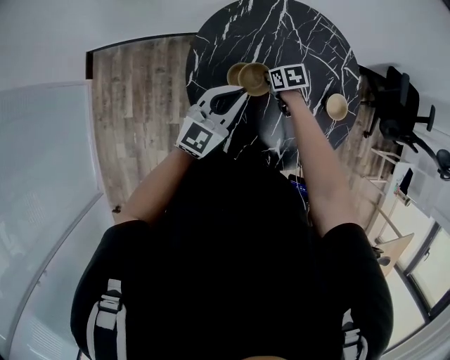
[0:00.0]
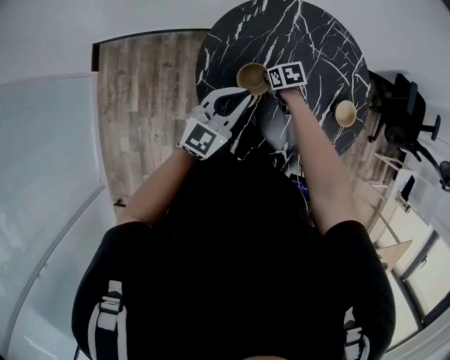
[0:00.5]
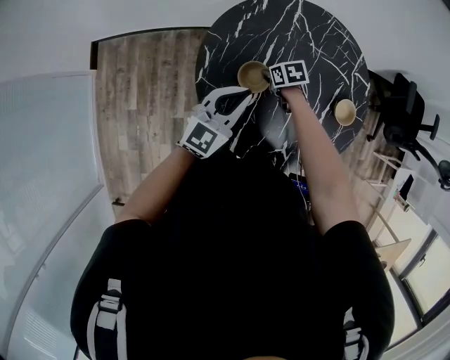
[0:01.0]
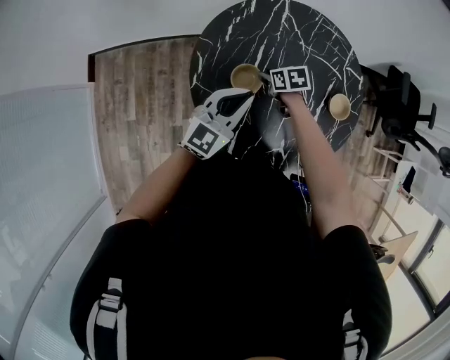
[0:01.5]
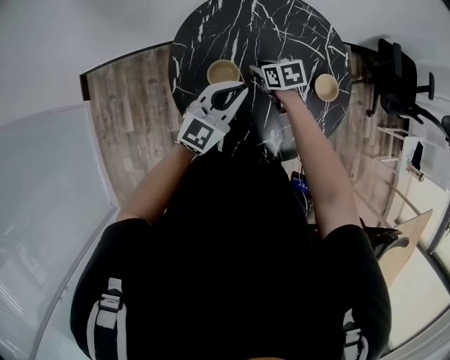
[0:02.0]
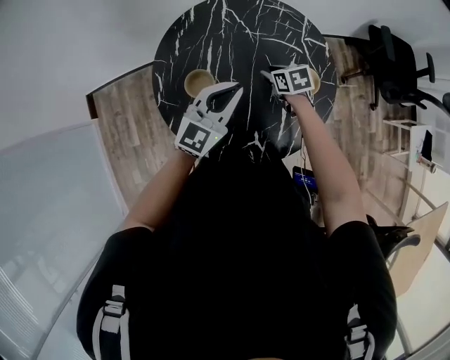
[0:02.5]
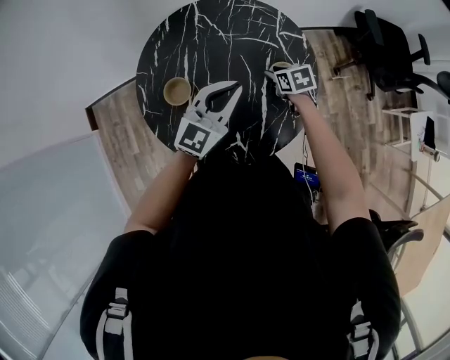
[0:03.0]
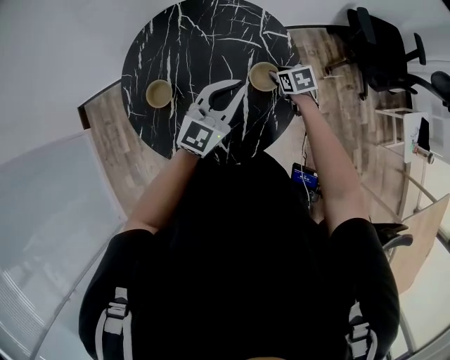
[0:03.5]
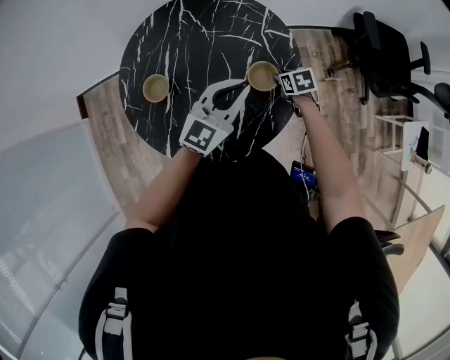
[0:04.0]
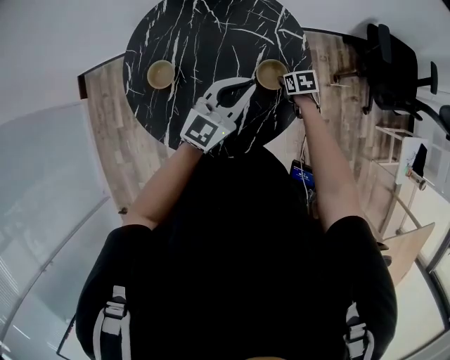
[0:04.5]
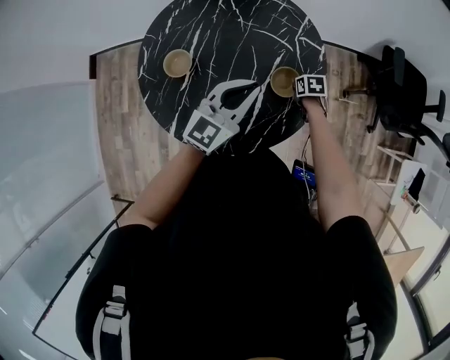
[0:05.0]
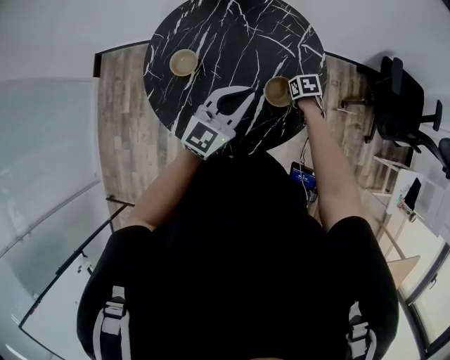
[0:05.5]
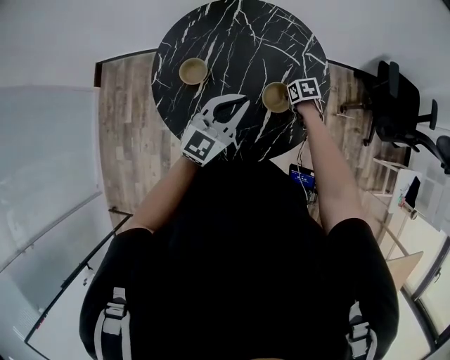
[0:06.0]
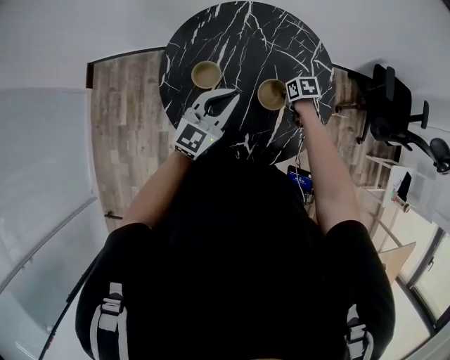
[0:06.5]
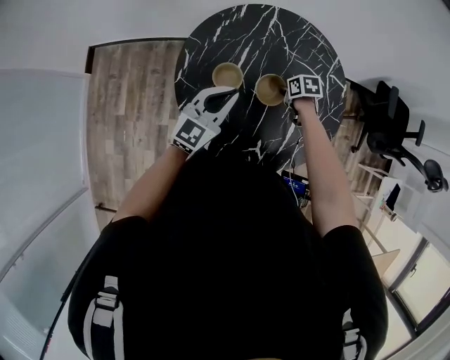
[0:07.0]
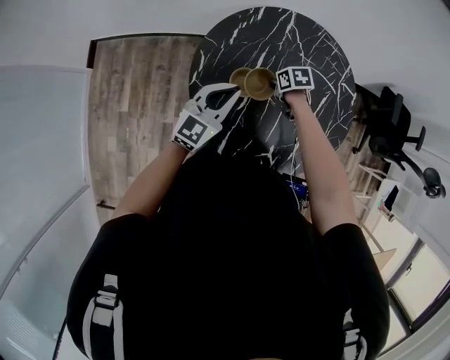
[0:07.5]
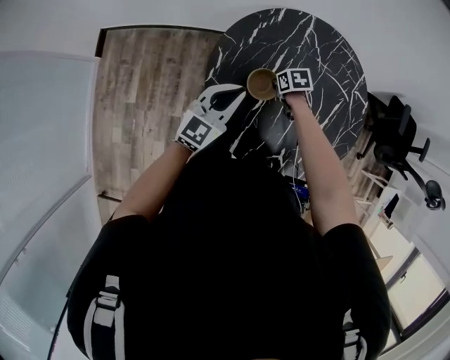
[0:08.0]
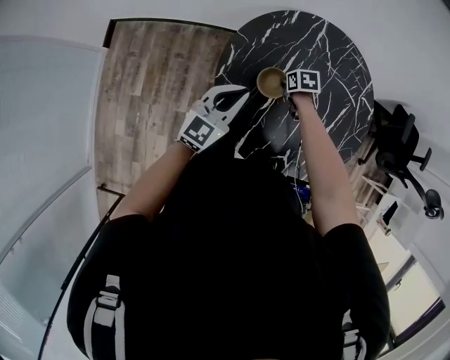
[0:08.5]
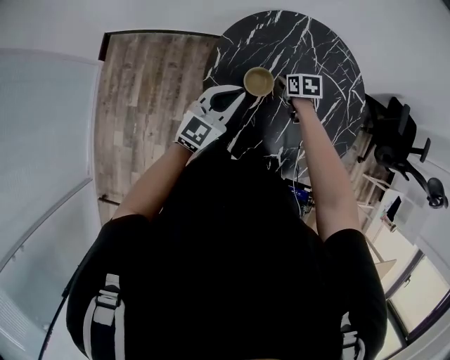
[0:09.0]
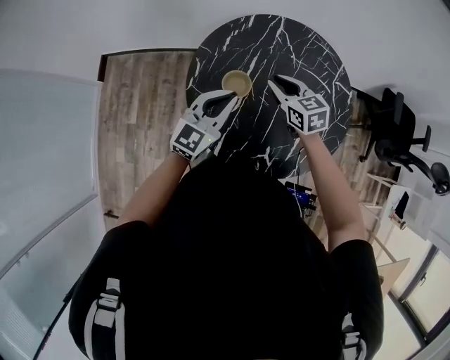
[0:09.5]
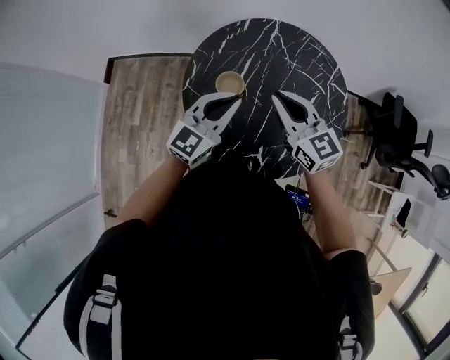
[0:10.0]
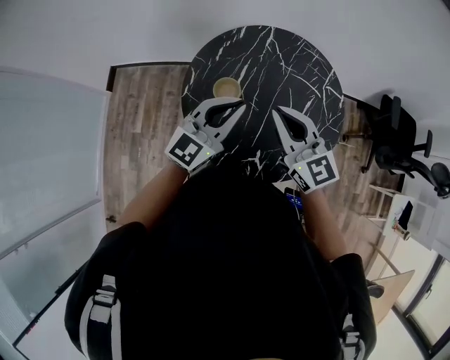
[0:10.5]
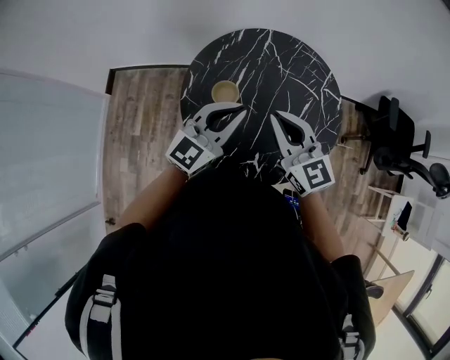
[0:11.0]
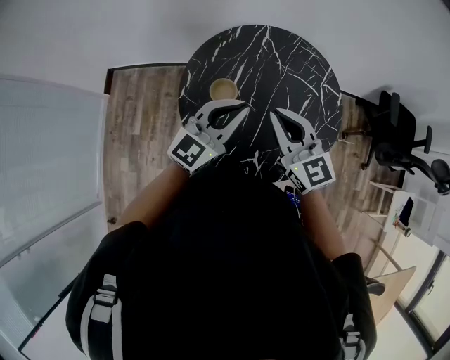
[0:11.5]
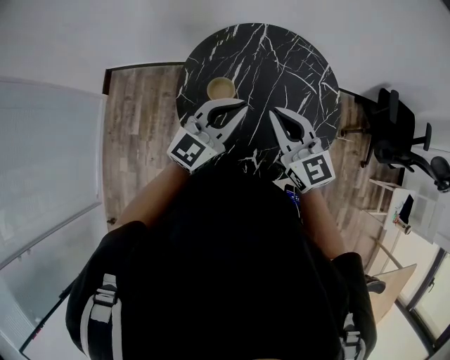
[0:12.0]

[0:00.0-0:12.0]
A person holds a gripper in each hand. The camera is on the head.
0:00.0 to 0:02.0: The right gripper travels upward by some 5 cm, and opens its fingers, while the left gripper is displaced to the right by approximately 5 cm.
0:02.0 to 0:04.0: Both grippers travel together to the right, approximately 35 cm.
0:04.0 to 0:06.0: The two grippers go approximately 10 cm to the left. The right gripper closes up.
0:06.0 to 0:08.0: Both grippers travel together to the left and forward, some 35 cm.
0:08.0 to 0:10.0: The right gripper moves upward, roughly 35 cm, and tilts its fingers about 60 degrees upward, while the left gripper moves to the right, upward and backward, about 20 cm.
0:10.0 to 0:12.0: The left gripper is displaced to the right by some 5 cm; the right gripper changes place by about 5 cm.

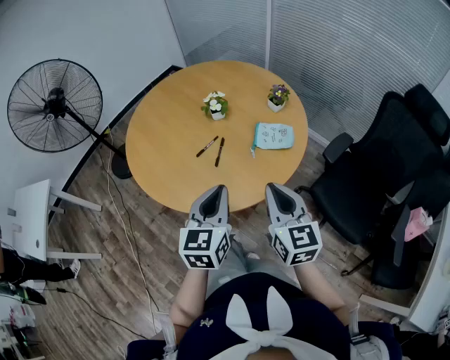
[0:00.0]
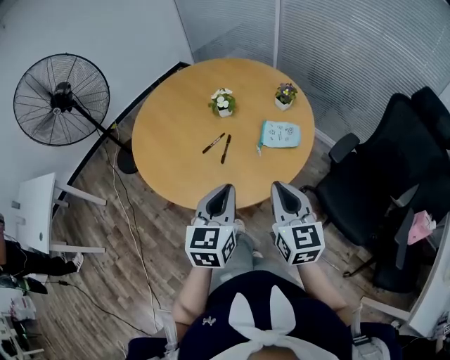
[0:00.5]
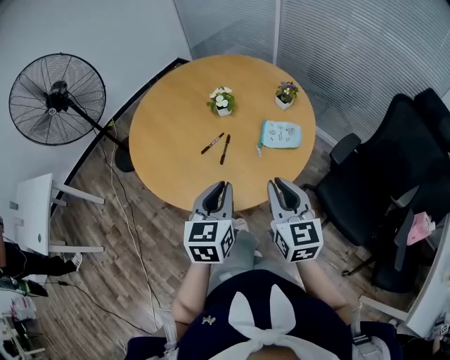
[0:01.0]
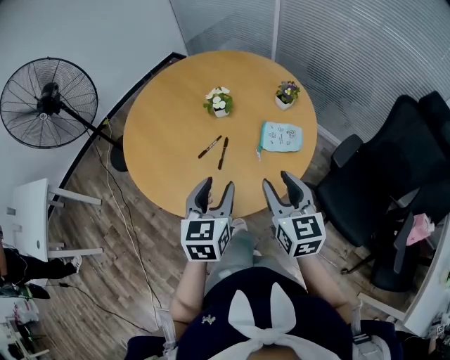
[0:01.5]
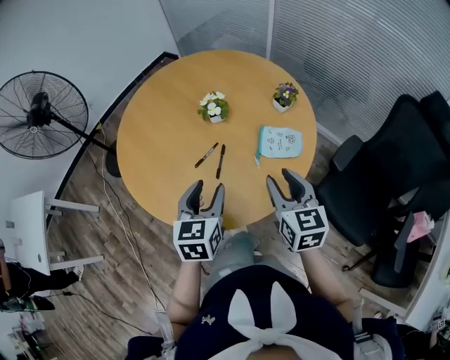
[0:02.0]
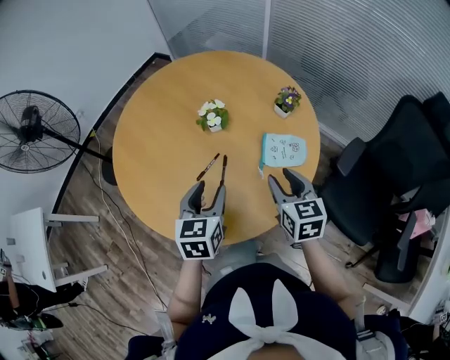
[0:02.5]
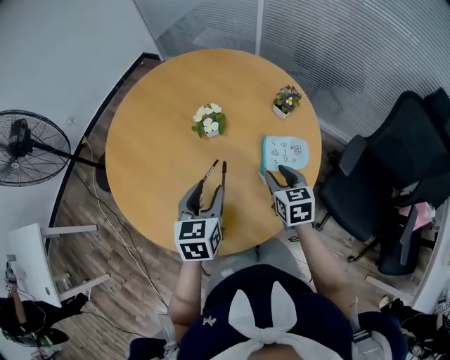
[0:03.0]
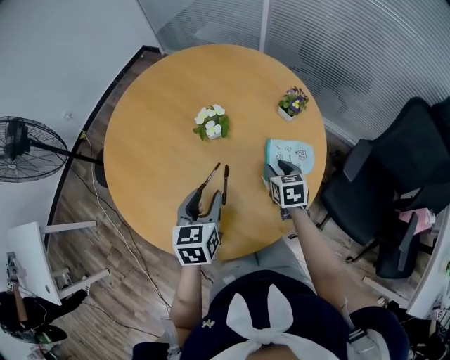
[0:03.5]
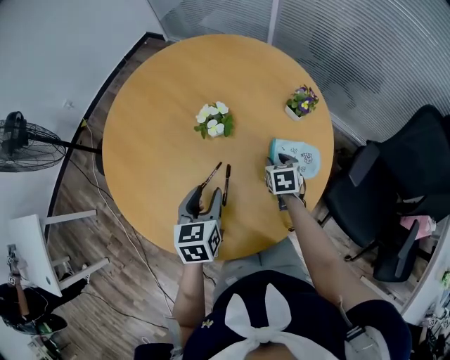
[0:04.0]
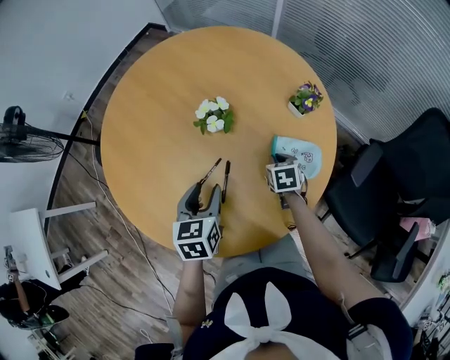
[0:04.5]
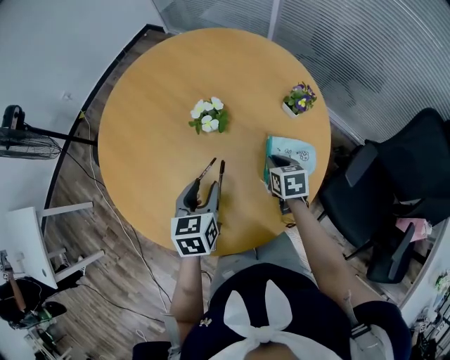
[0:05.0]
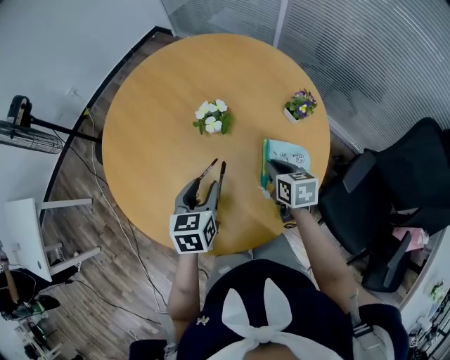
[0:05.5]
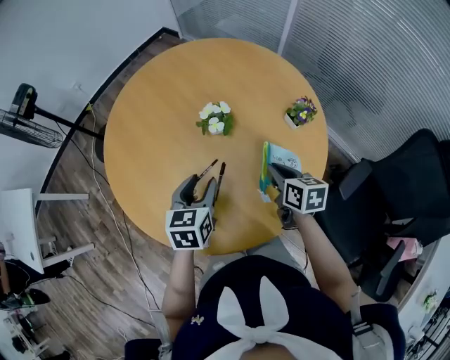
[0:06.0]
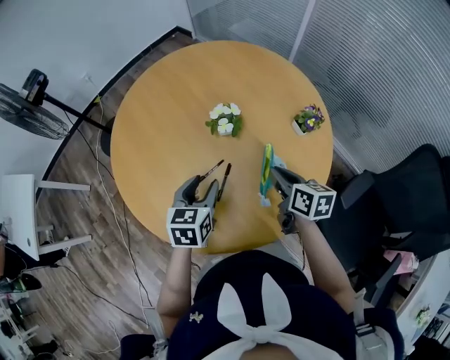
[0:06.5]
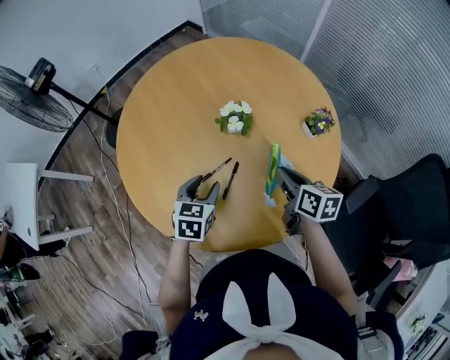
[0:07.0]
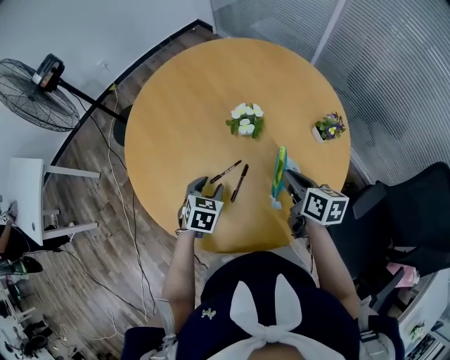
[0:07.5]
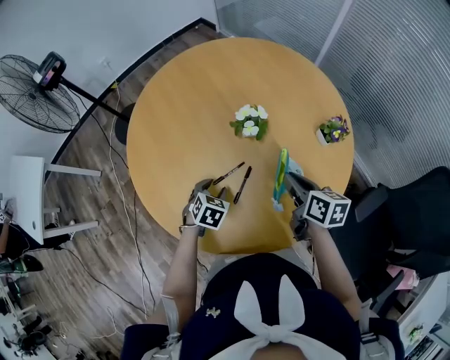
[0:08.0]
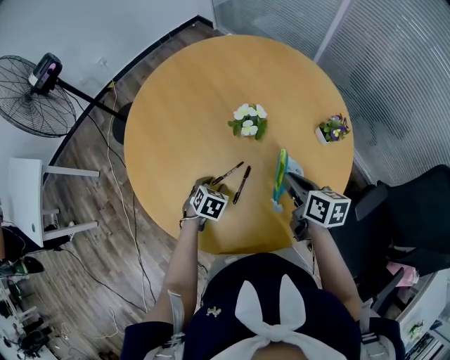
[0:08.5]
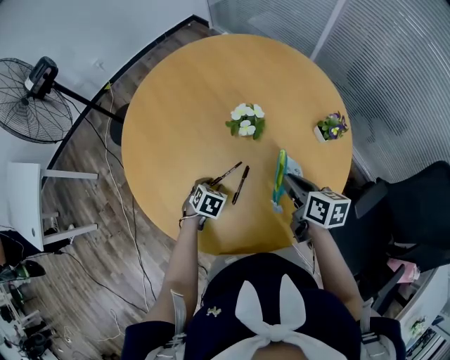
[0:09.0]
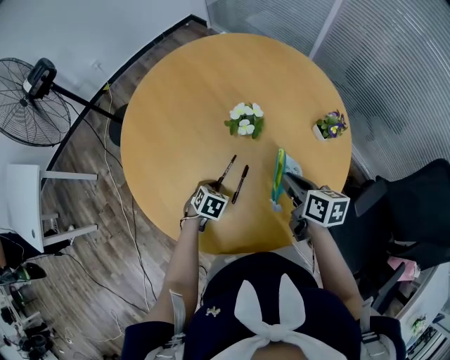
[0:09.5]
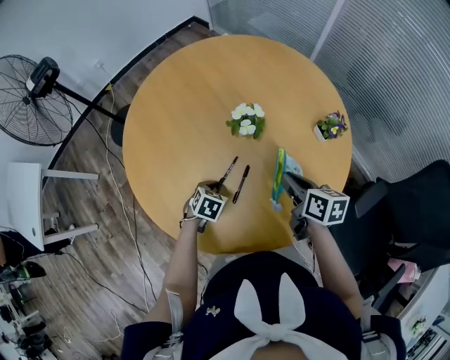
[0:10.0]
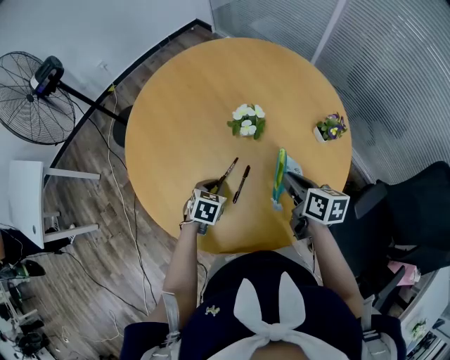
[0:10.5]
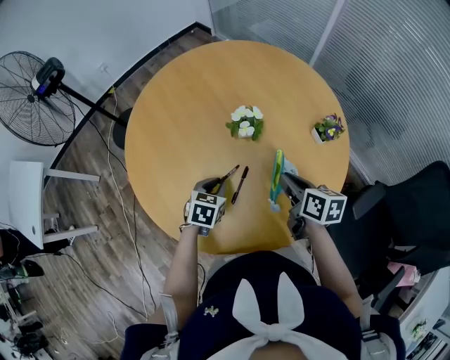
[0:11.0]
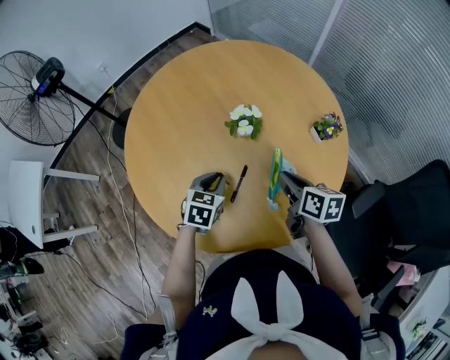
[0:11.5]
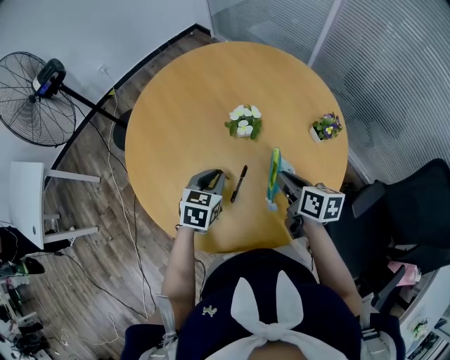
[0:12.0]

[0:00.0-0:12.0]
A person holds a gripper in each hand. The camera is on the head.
0:00.0 to 0:02.0: The left gripper moves forward and downward, approximately 15 cm, and opens up. The right gripper shifts some 15 cm forward, and opens.
0:02.0 to 0:04.0: The right gripper heads downward and forward, covering some 30 cm, and tilts its fingers about 40 degrees downward. The left gripper travels forward and downward by approximately 15 cm.
0:04.0 to 0:06.0: The right gripper moves upward, roughly 10 cm, turns by approximately 30 degrees, and closes its fingers.
0:06.0 to 0:08.0: The left gripper shifts some 15 cm downward, and turns by approximately 30 degrees.
0:08.0 to 0:10.0: The left gripper closes its fingers.
0:10.0 to 0:12.0: The left gripper moves upward, approximately 15 cm, and turns by approximately 20 degrees.

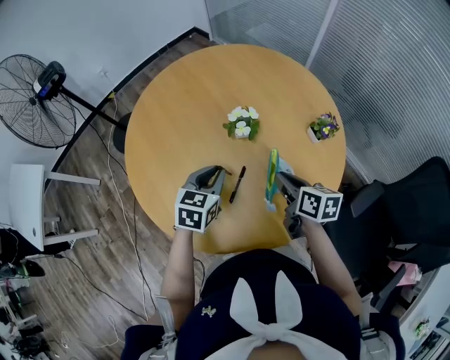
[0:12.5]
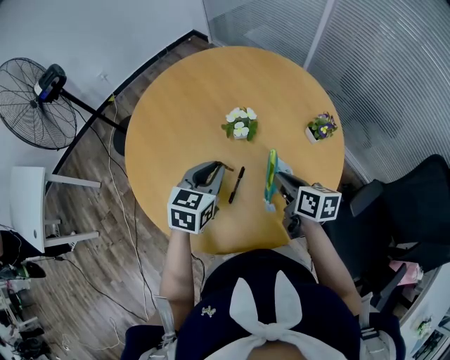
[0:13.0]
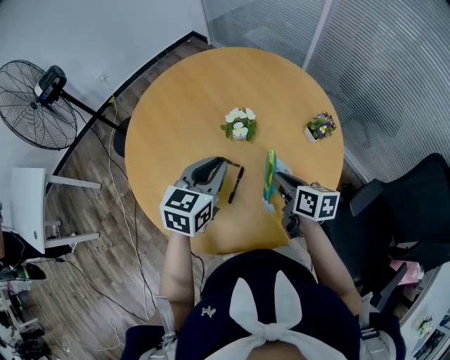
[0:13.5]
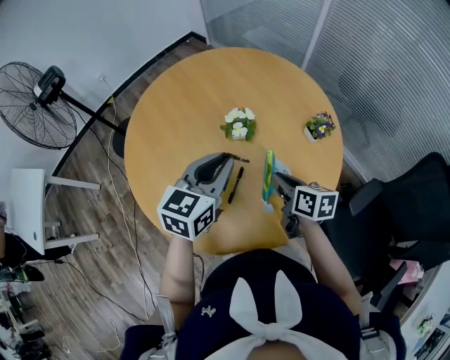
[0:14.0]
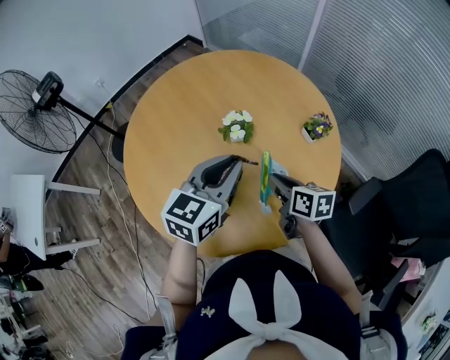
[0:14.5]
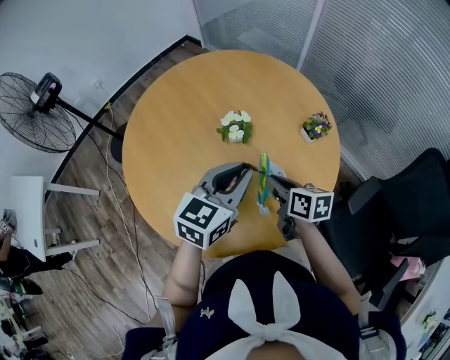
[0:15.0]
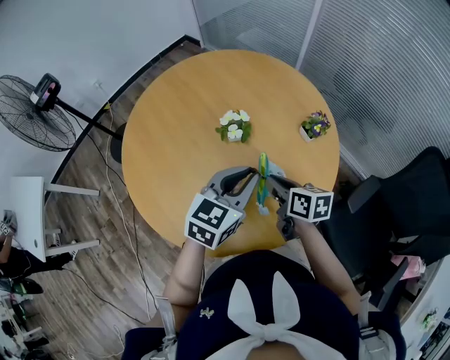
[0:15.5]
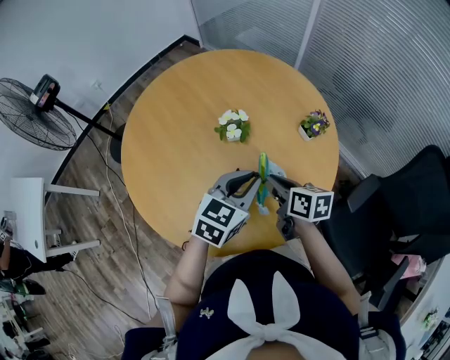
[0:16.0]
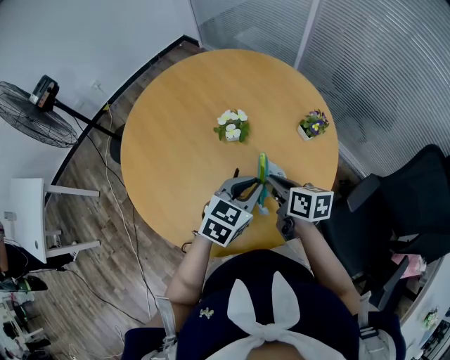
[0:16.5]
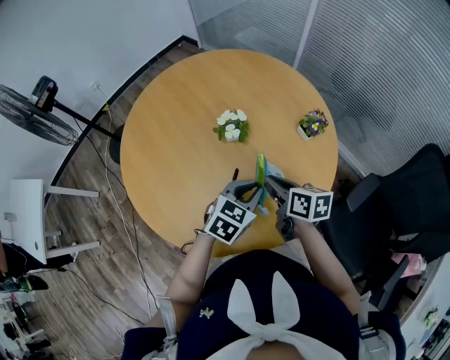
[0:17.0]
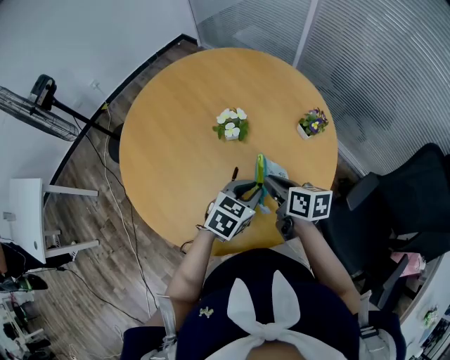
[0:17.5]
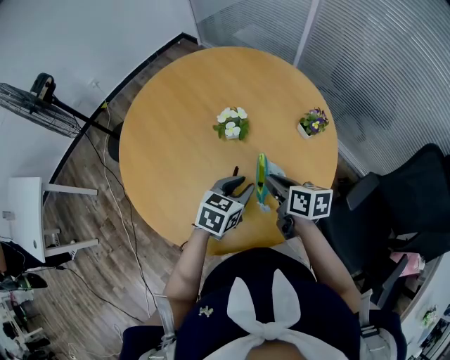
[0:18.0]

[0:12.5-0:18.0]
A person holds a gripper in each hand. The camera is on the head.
0:12.5 to 0:14.5: The left gripper moves upward and to the right, approximately 15 cm, and rotates roughly 20 degrees.
0:14.5 to 0:16.0: The left gripper goes about 10 cm downward and to the right.
0:16.0 to 0:18.0: The left gripper is displaced downward by approximately 10 cm.
